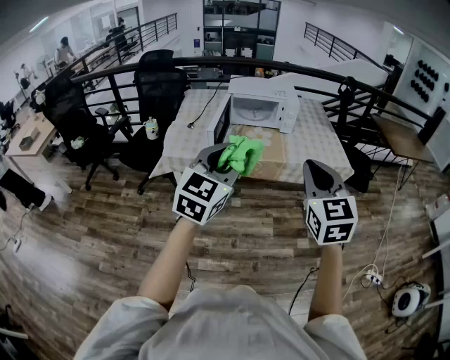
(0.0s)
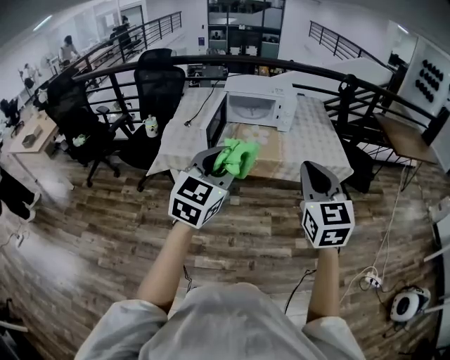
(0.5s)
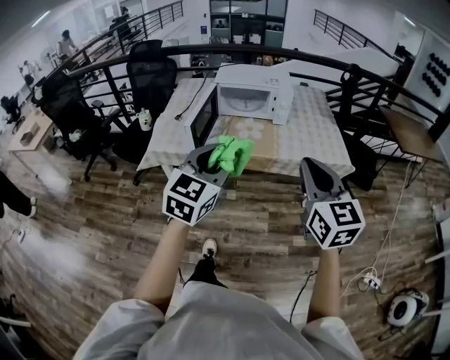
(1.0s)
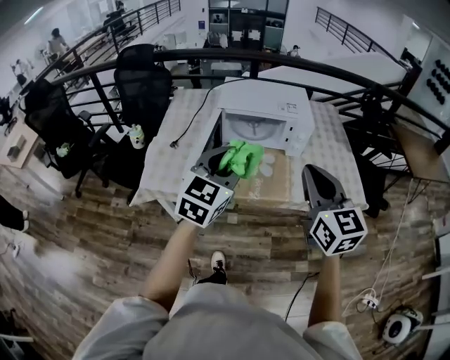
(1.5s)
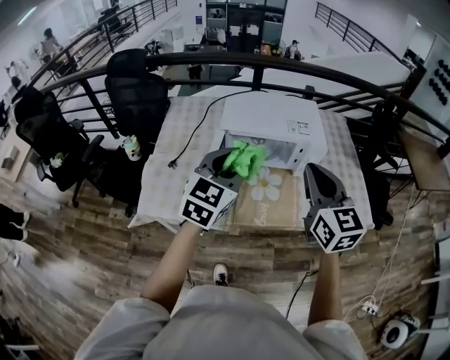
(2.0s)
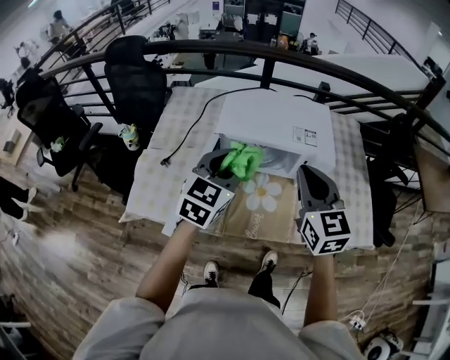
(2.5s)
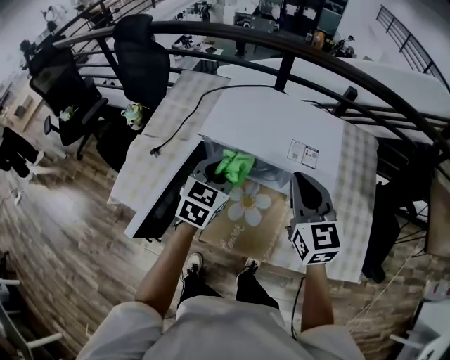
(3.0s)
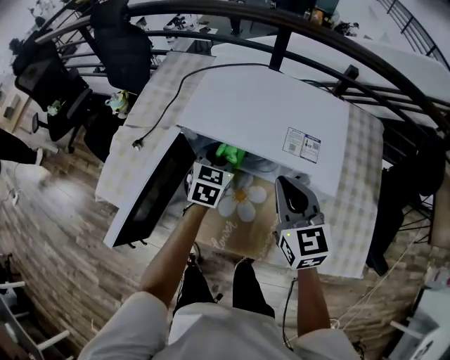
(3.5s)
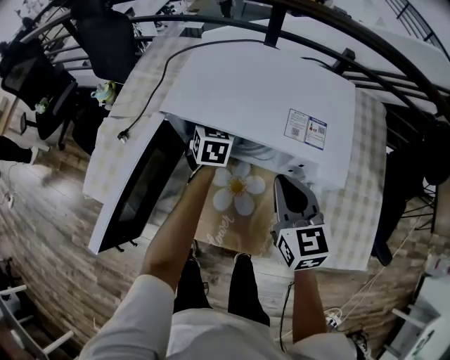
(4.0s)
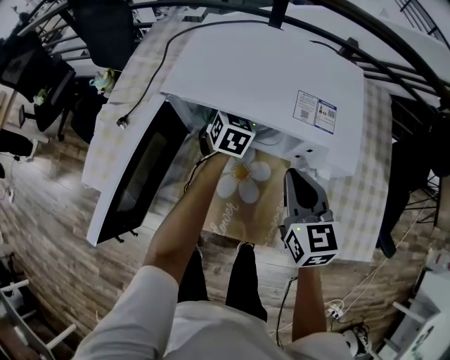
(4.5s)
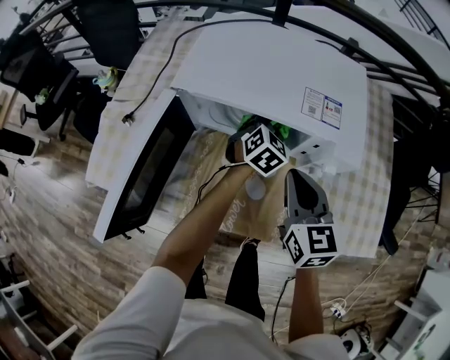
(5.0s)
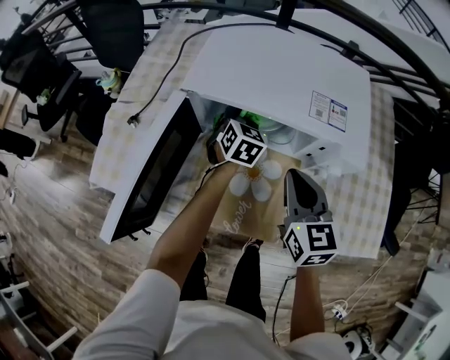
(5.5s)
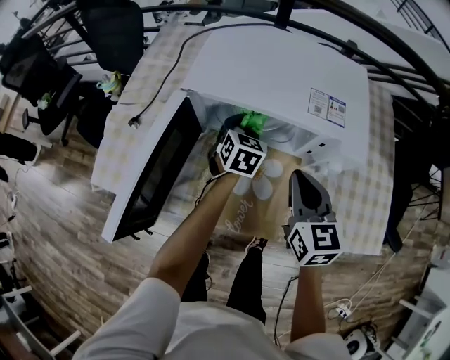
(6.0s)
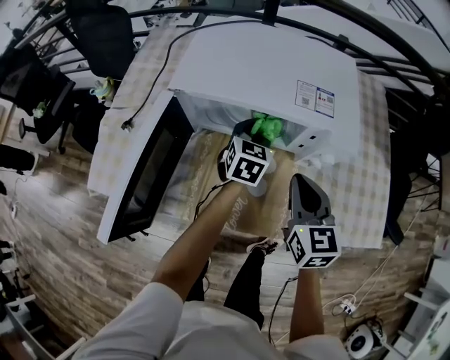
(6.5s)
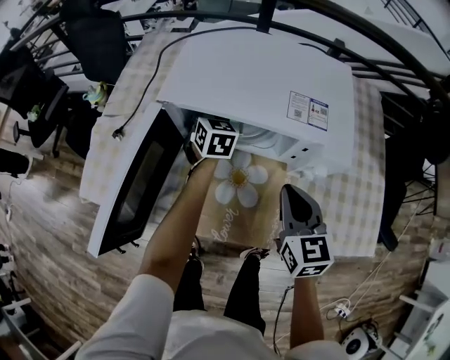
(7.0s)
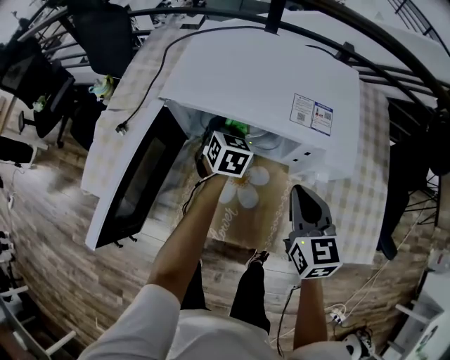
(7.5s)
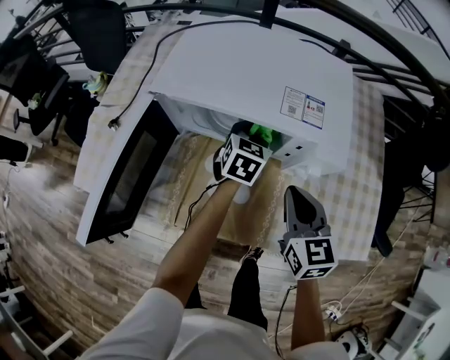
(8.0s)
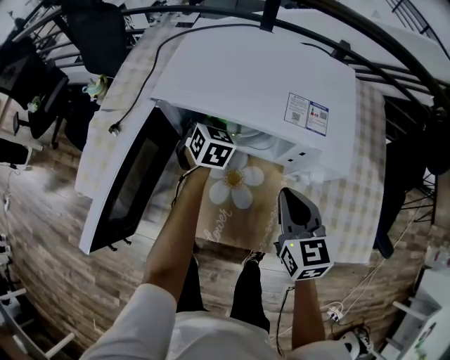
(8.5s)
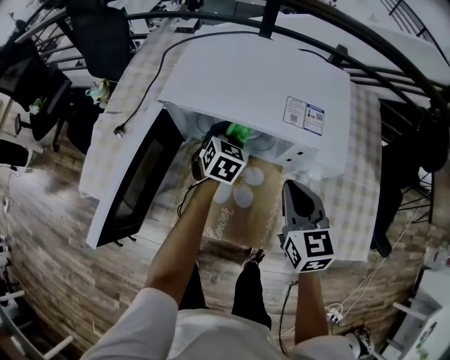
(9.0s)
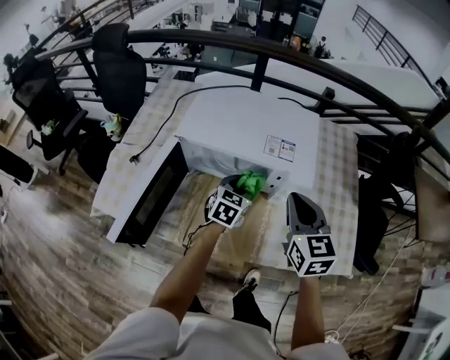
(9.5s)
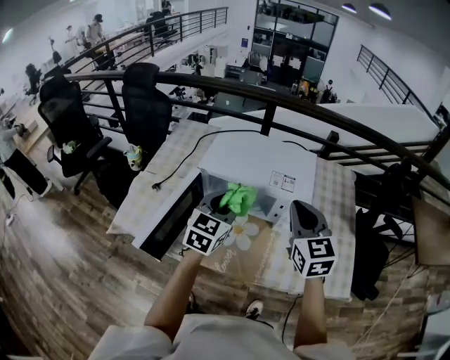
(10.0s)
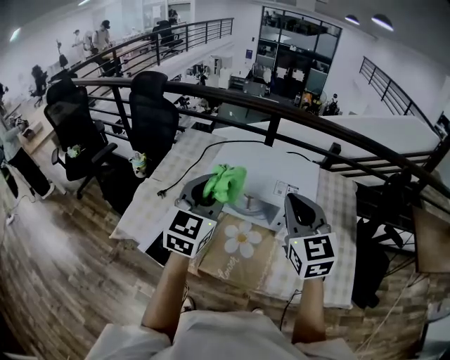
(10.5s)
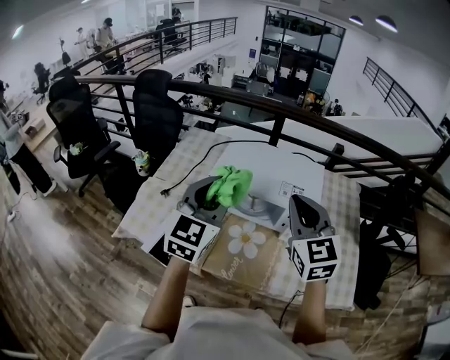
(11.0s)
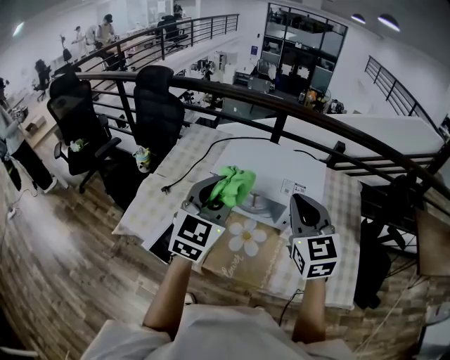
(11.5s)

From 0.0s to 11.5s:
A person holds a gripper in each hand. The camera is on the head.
From 0.0s to 2.0s: The pair of grippers is taken forward, approximately 50 cm.
From 2.0s to 4.0s: The right gripper travels downward and forward by some 30 cm, and swivels about 20 degrees. The left gripper travels forward and downward by about 50 cm, and rotates some 40 degrees.
From 4.0s to 6.0s: The left gripper shifts approximately 5 cm backward, and travels to the right and back again, approximately 15 cm each way.
From 6.0s to 7.5s: The right gripper heads to the right, covering roughly 5 cm. The left gripper goes left and right, roughly 10 cm each way, reversing 2 times.
From 7.5s to 9.5s: The right gripper goes about 15 cm upward. Meanwhile the left gripper heads backward, to the right and upward, covering some 15 cm, and changes its angle by some 20 degrees.
From 9.5s to 11.5s: The right gripper heads upward and to the left, covering some 15 cm. Meanwhile the left gripper is displaced upward and to the left by approximately 35 cm, and swivels about 30 degrees.

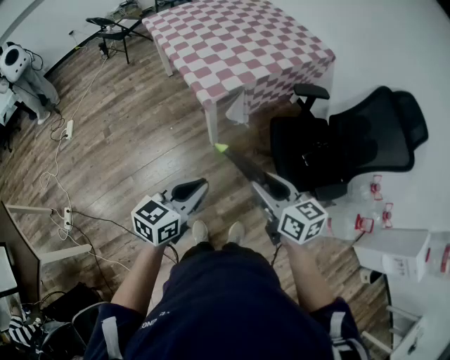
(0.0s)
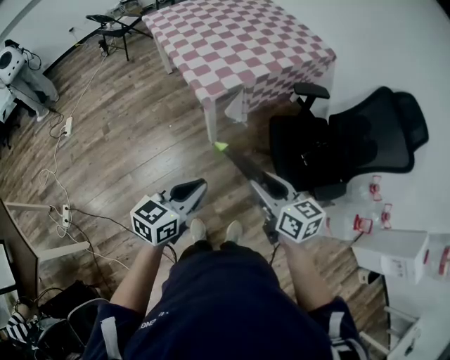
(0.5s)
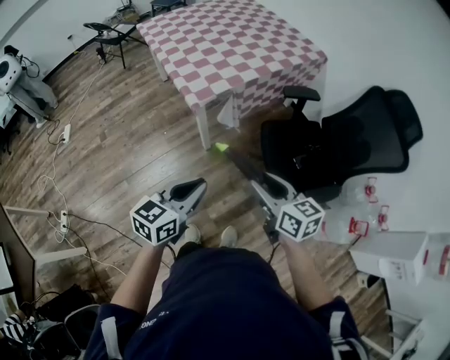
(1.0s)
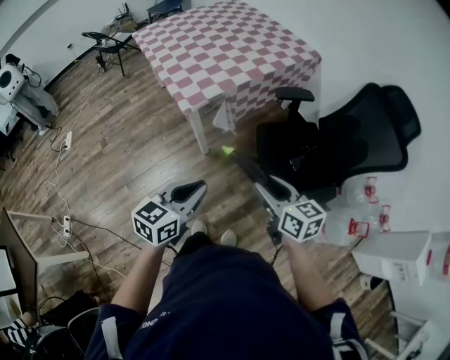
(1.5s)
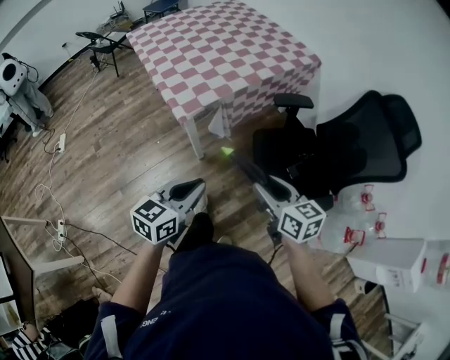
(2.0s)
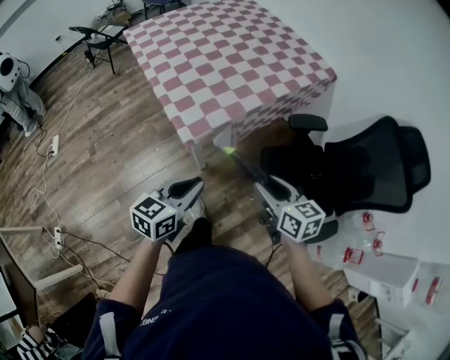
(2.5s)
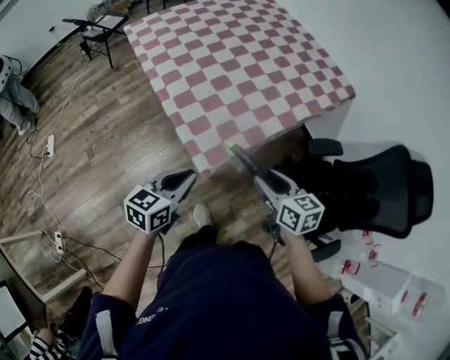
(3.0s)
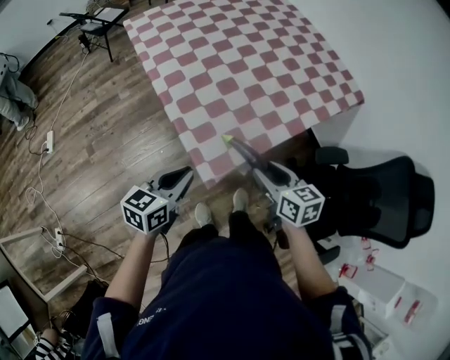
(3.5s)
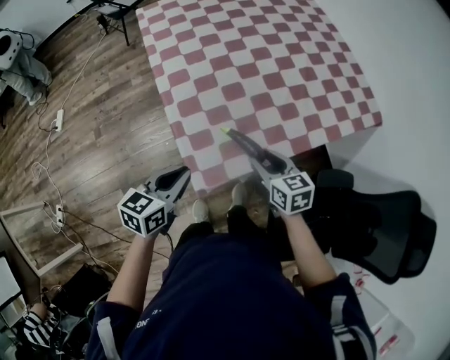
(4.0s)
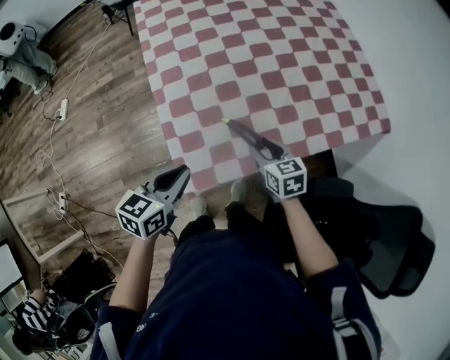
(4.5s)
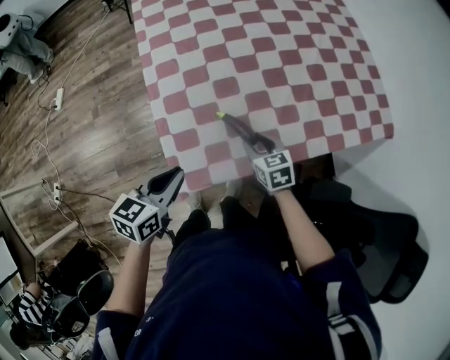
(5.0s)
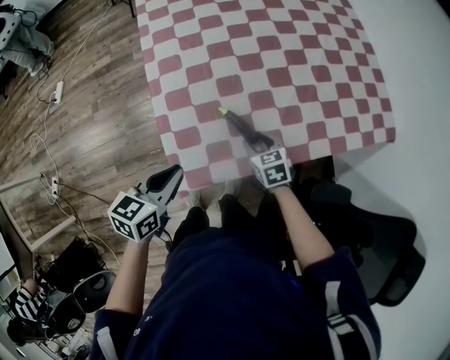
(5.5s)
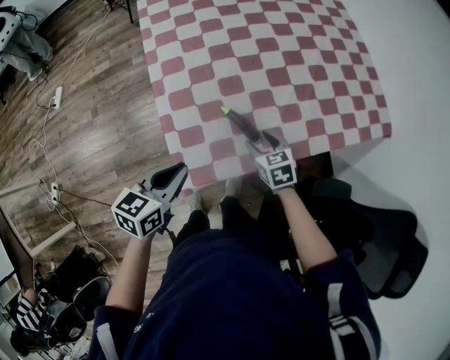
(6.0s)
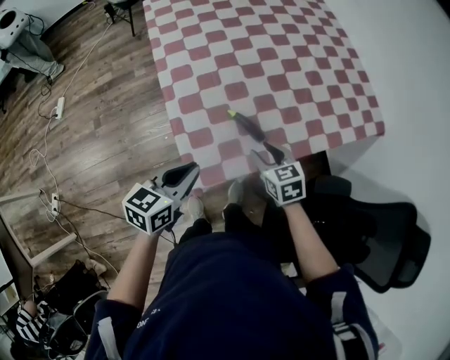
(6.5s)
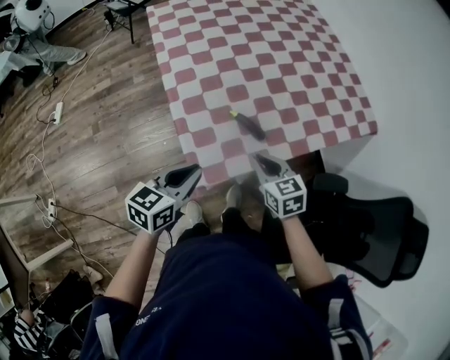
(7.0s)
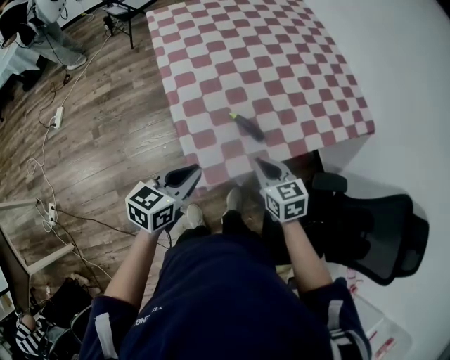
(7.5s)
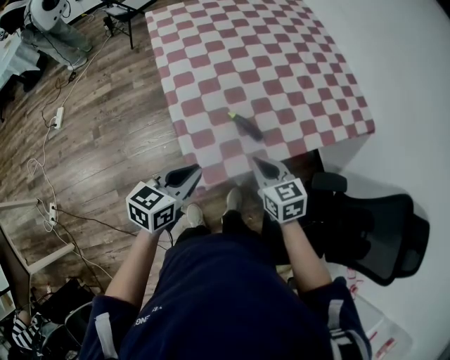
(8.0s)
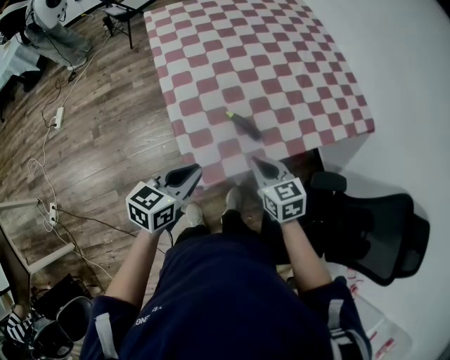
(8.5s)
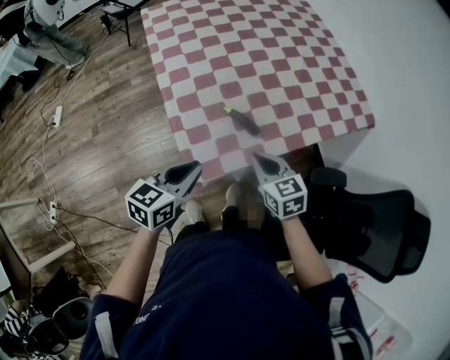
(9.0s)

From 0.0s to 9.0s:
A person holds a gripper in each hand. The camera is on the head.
From 0.0s to 2.0s: The grippers both shift to the right and forward by some 15 cm.
From 2.0s to 4.5s: Both grippers are carried forward, some 50 cm. The left gripper swivels some 20 degrees; the right gripper swivels approximately 30 degrees.
From 4.5s to 7.0s: The left gripper ends up about 5 cm from where it was. The right gripper heads backward, upward and to the left, covering roughly 10 cm, and closes up.
From 7.0s to 9.0s: There are only small adjustments of the grippers.

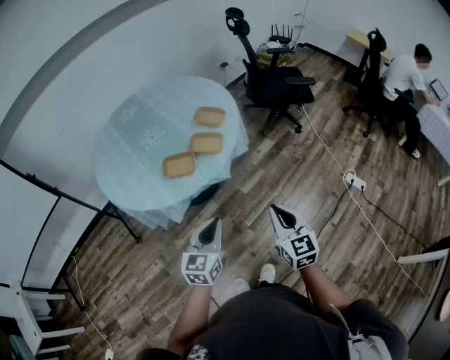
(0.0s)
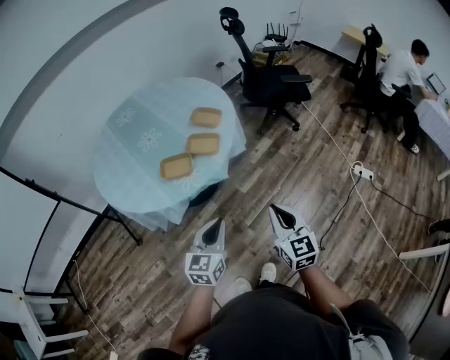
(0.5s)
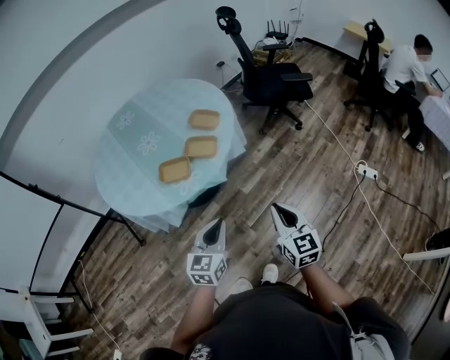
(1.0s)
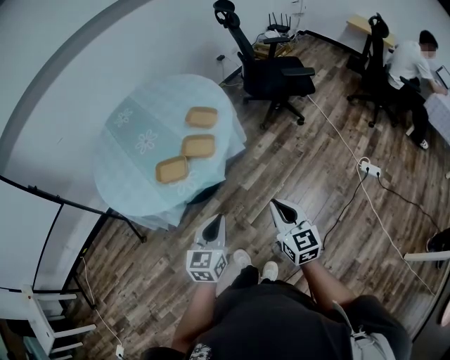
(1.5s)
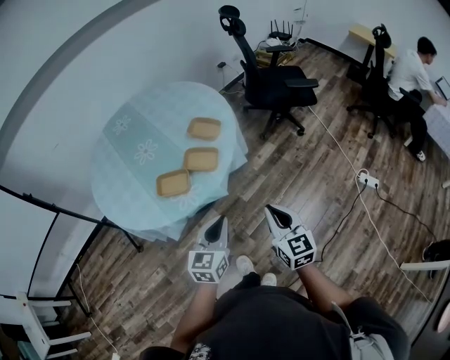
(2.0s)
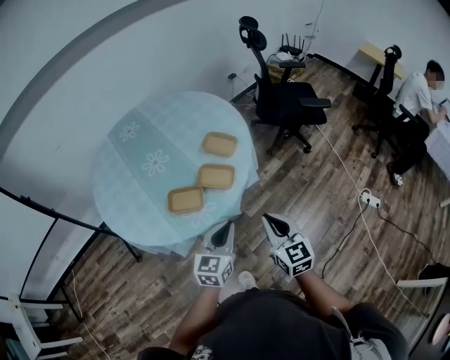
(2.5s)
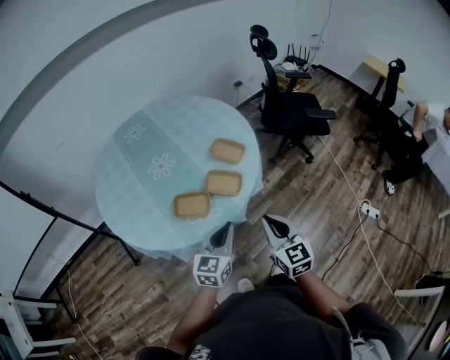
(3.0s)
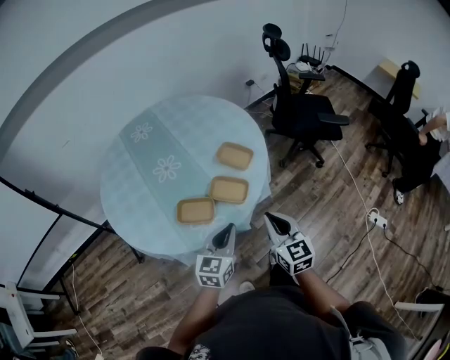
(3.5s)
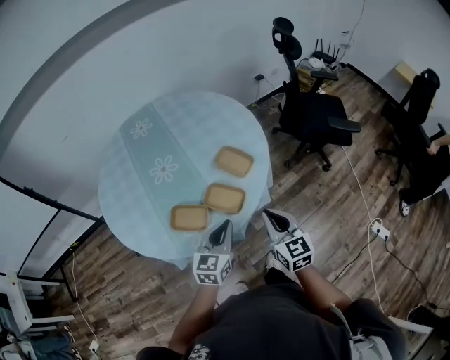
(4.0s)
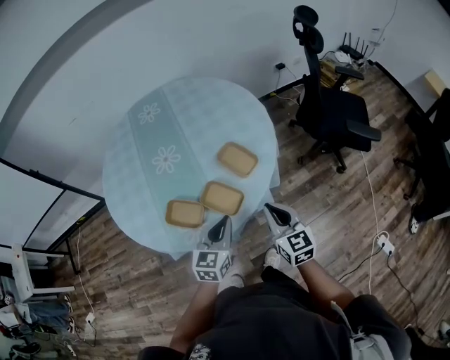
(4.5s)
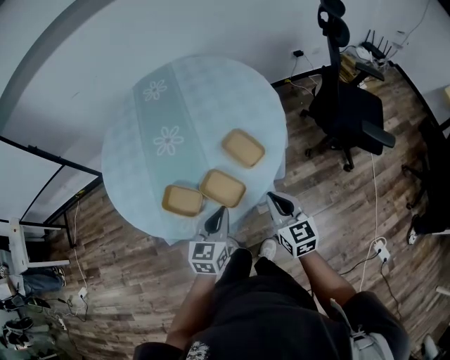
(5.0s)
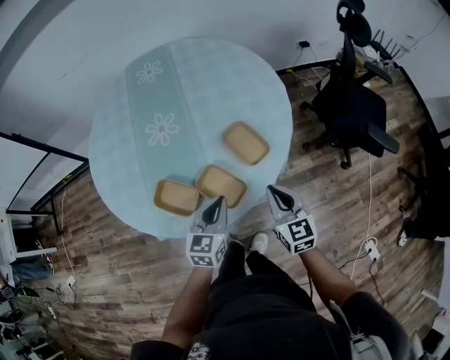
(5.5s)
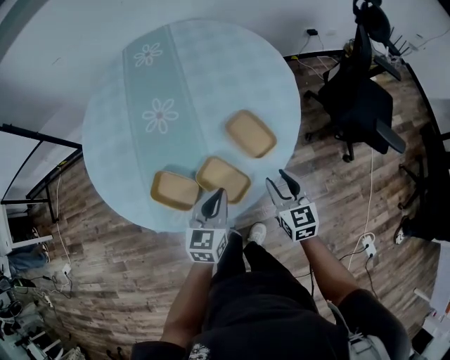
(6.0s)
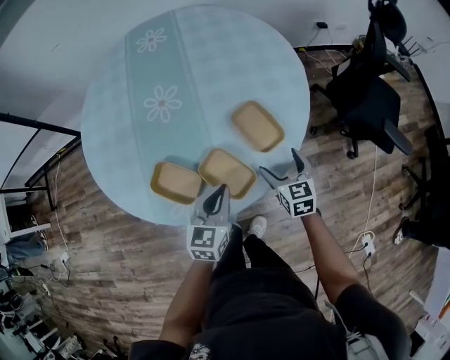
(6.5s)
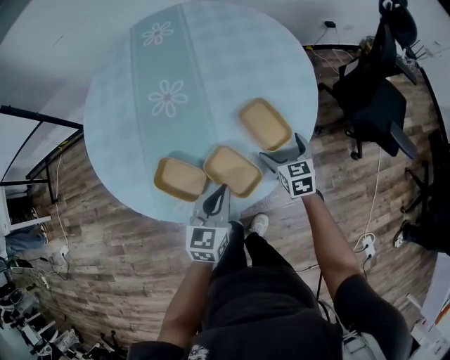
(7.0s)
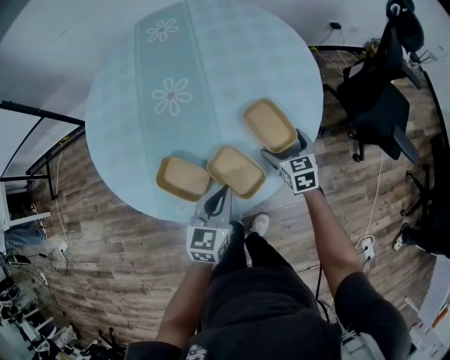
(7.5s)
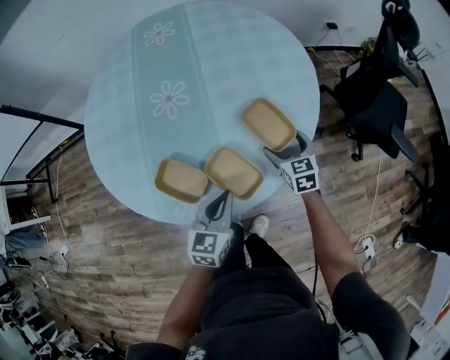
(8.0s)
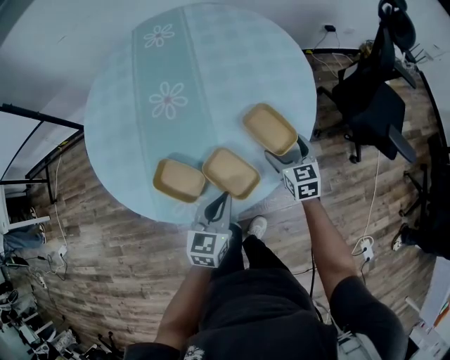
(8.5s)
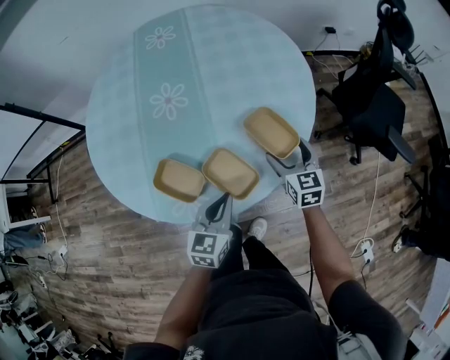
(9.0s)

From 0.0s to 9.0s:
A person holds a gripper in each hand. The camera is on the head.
From 0.0s to 2.0s: Both grippers move forward, some 10 cm.
From 2.0s to 4.5s: Both grippers travel together forward, about 30 cm. The right gripper swivels about 20 degrees.
From 4.5s to 7.0s: The left gripper heads downward and forward, covering roughly 10 cm. The right gripper heads forward and downward, covering roughly 30 cm, rotates some 20 degrees, and opens.
From 7.0s to 9.0s: The right gripper goes roughly 5 cm upward.
